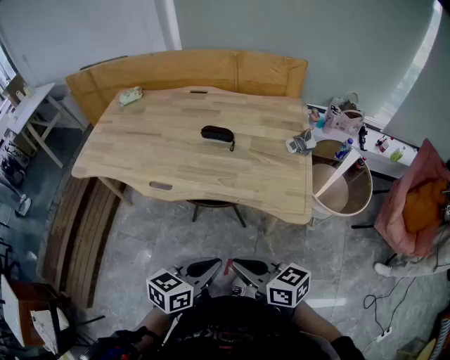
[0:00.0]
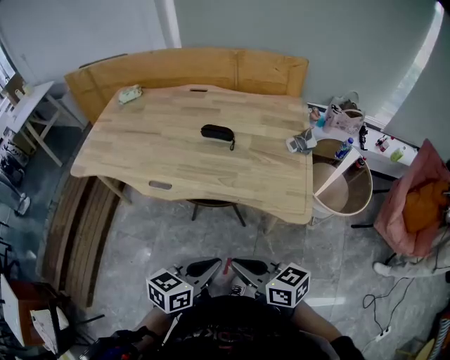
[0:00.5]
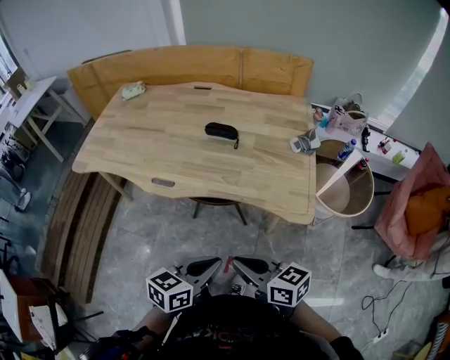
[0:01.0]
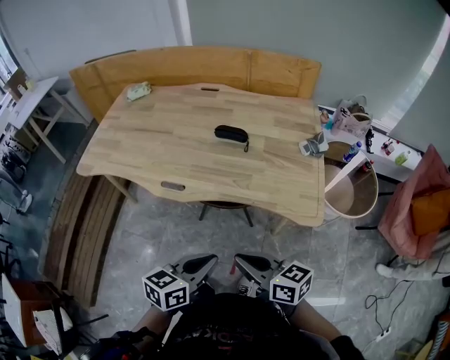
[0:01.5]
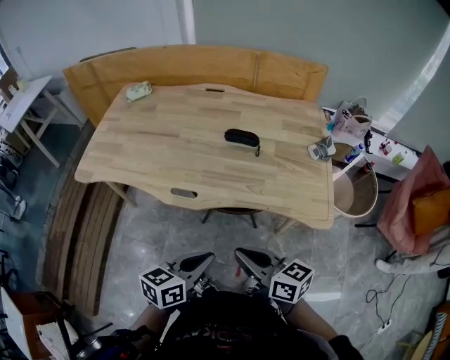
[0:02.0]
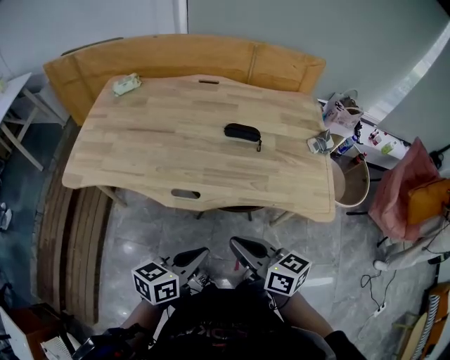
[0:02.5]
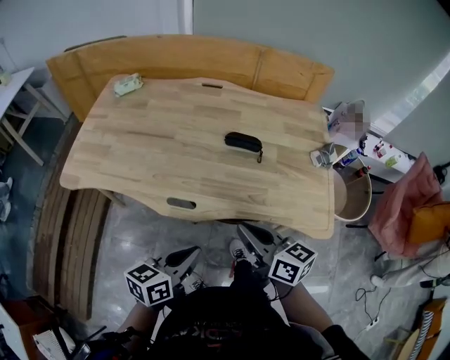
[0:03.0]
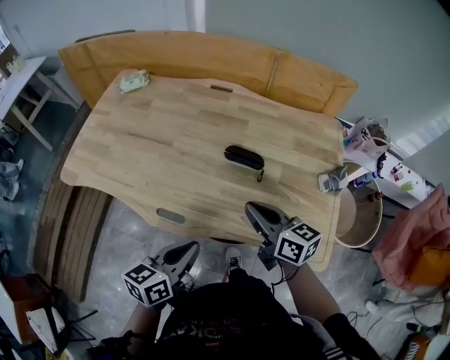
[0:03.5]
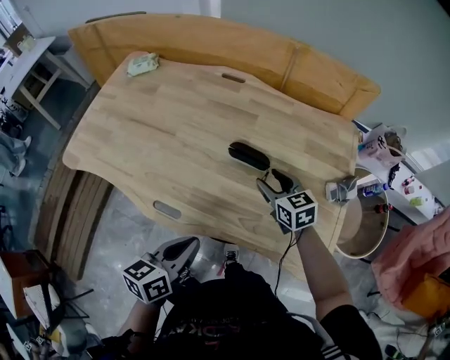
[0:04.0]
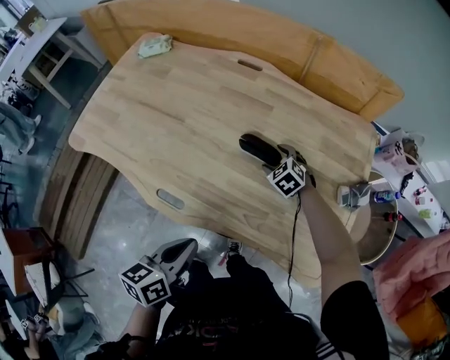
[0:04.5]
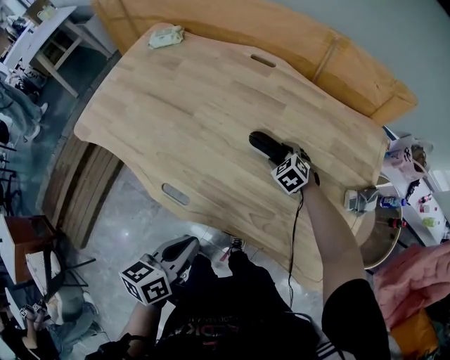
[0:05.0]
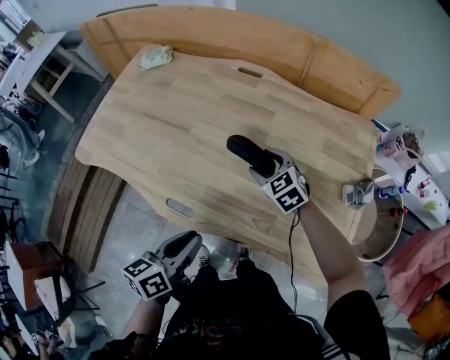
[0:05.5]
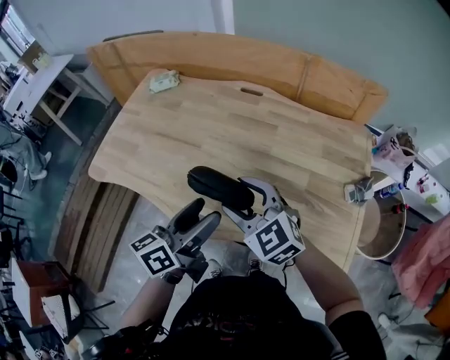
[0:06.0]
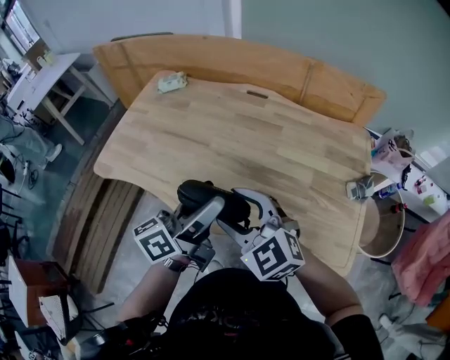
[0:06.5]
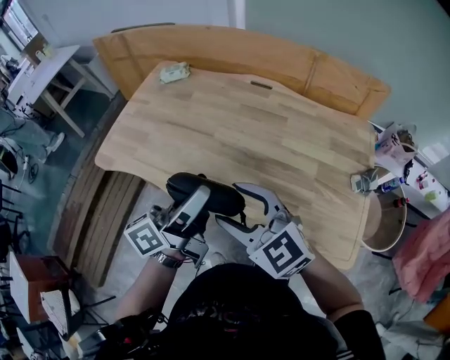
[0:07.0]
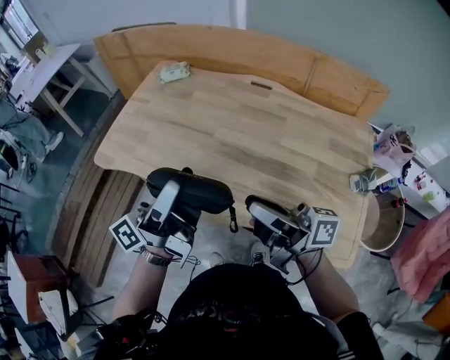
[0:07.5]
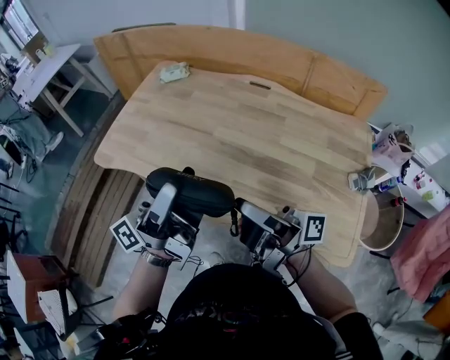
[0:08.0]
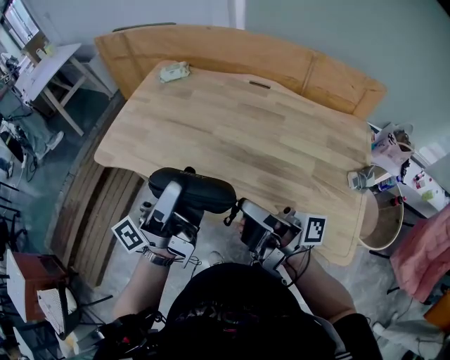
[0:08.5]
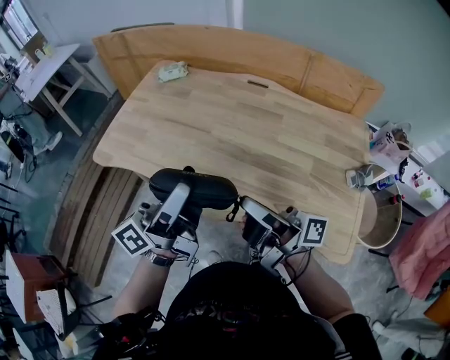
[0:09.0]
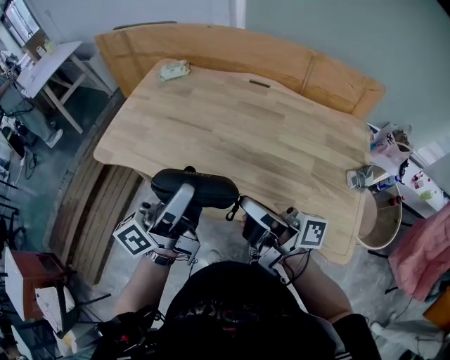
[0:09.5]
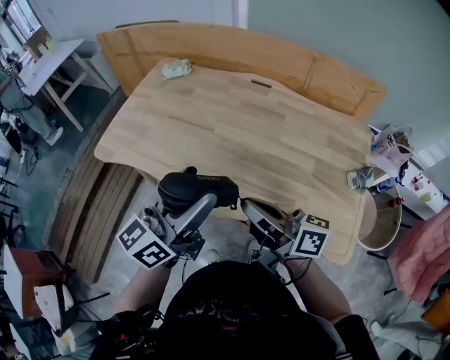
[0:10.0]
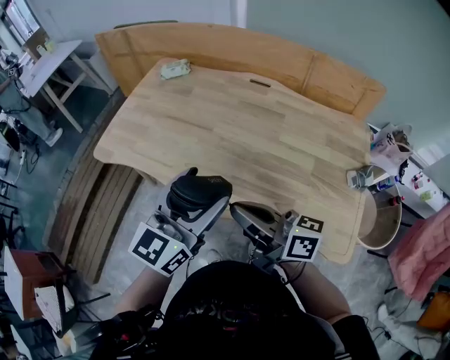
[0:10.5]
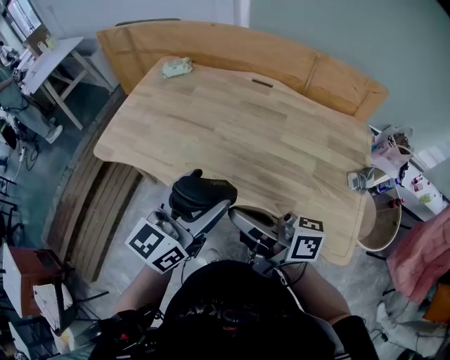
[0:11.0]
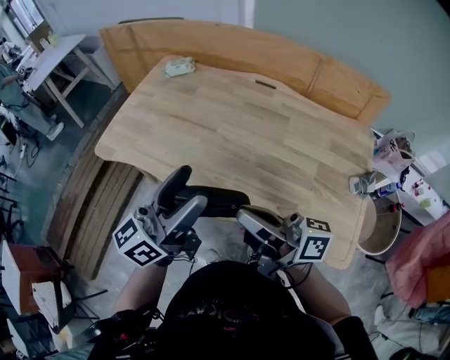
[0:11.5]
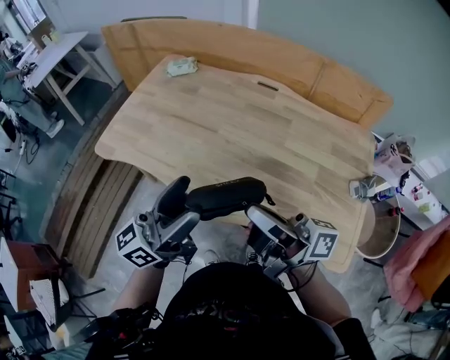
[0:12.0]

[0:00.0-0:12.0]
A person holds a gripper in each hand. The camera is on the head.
0:00.0 to 0:02.0: Both grippers move to the left and forward, roughly 15 cm.
0:02.0 to 0:04.0: The right gripper is displaced forward by about 40 cm, swivels approximately 30 degrees, and opens its fingers; the left gripper goes roughly 20 cm forward.
0:04.0 to 0:06.0: The left gripper is displaced upward and forward by about 10 cm, swivels about 20 degrees, and opens up. Meanwhile the right gripper shifts some 25 cm to the left, upward and backward, and turns by some 30 degrees.
0:06.0 to 0:08.0: The right gripper travels backward and upward by roughly 10 cm, rotates around the line of its fingers by roughly 80 degrees, clockwise from behind, and closes up. Meanwhile the left gripper is displaced upward and to the left by some 15 cm, and tips its fingers upward by about 40 degrees.
0:08.0 to 0:10.0: The left gripper rolls clockwise, seen from behind, by roughly 40 degrees, while the right gripper turns by roughly 30 degrees.
0:10.0 to 0:12.0: The right gripper moves upward, about 5 cm.

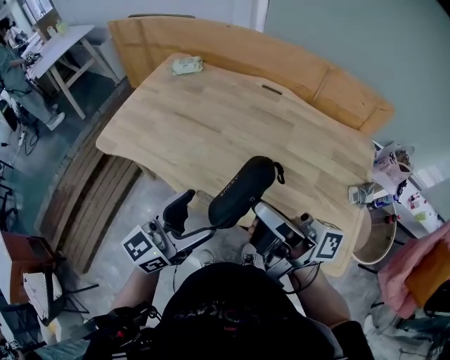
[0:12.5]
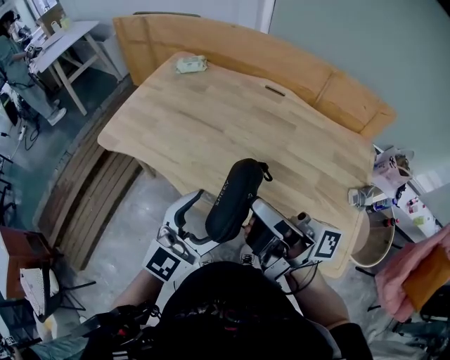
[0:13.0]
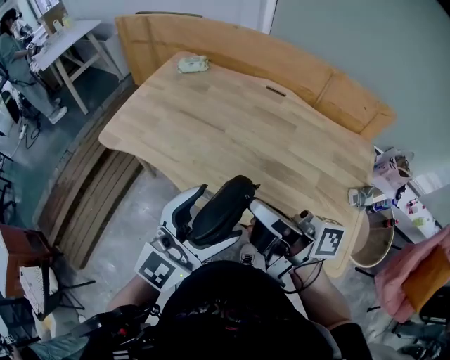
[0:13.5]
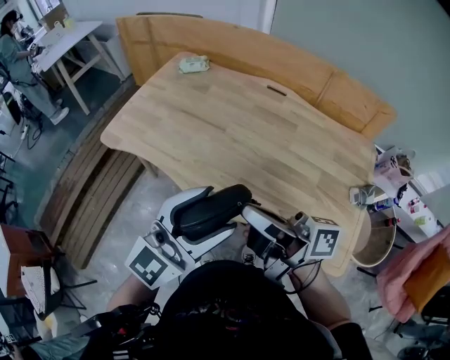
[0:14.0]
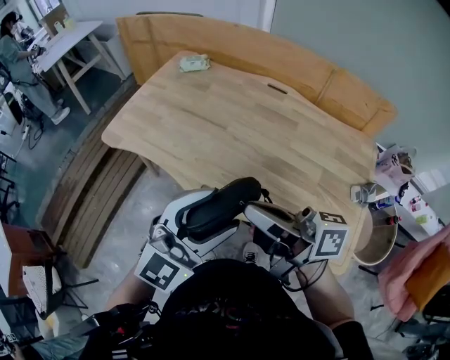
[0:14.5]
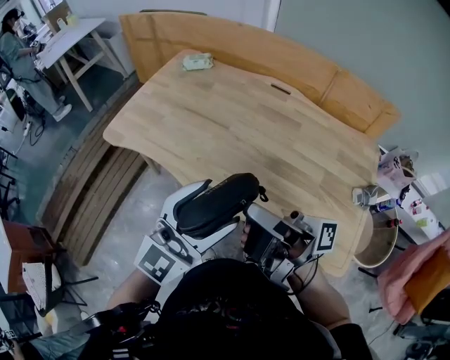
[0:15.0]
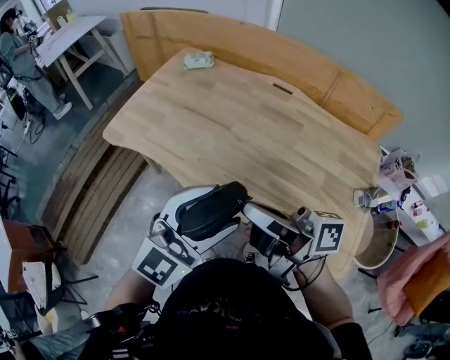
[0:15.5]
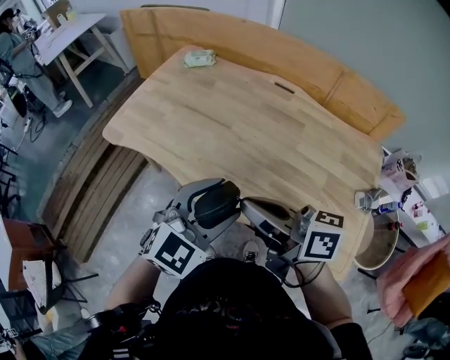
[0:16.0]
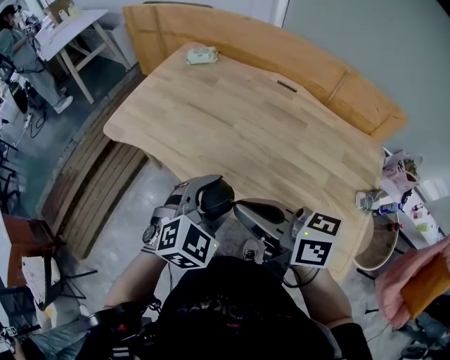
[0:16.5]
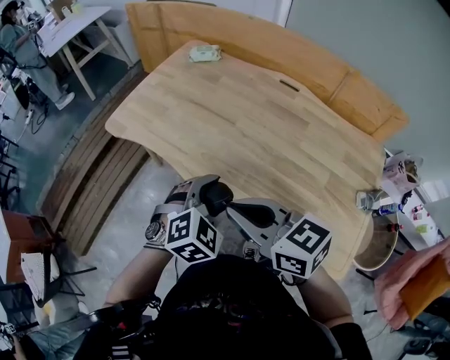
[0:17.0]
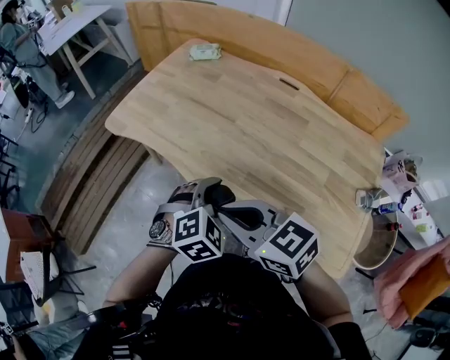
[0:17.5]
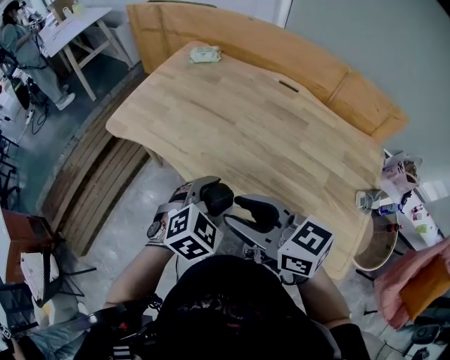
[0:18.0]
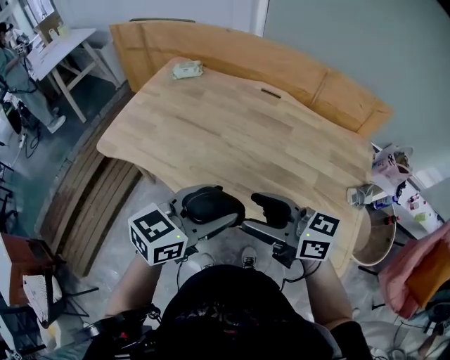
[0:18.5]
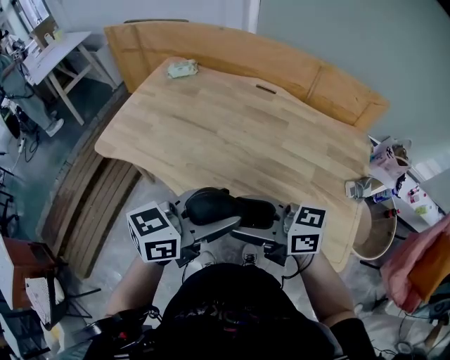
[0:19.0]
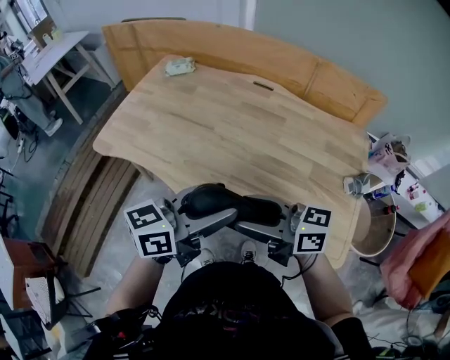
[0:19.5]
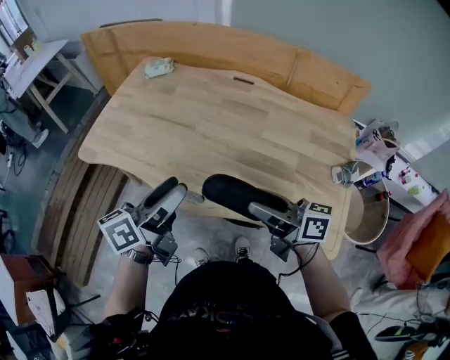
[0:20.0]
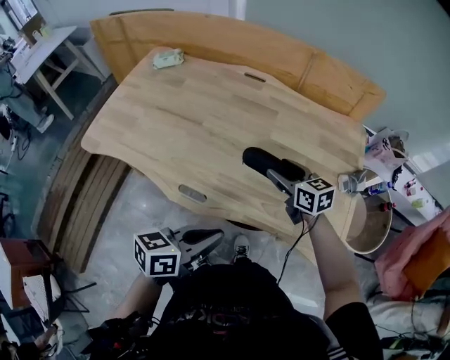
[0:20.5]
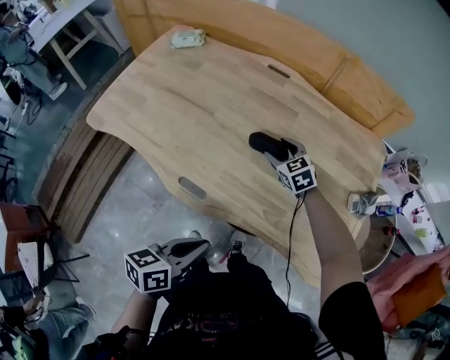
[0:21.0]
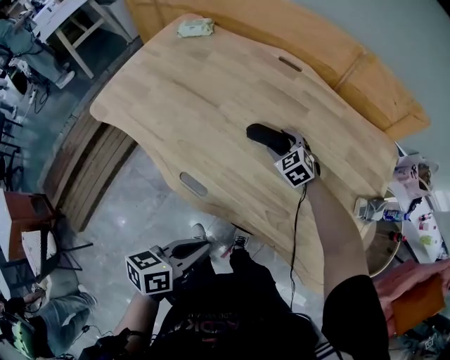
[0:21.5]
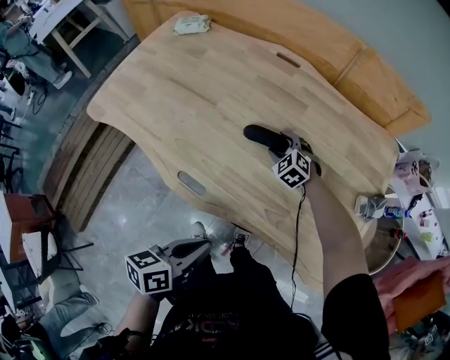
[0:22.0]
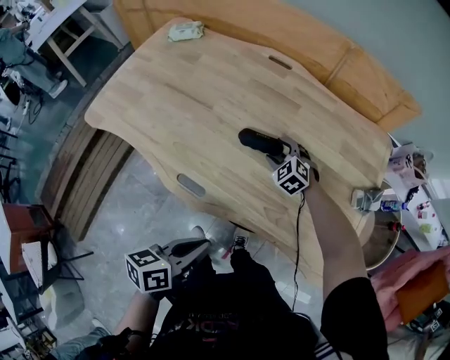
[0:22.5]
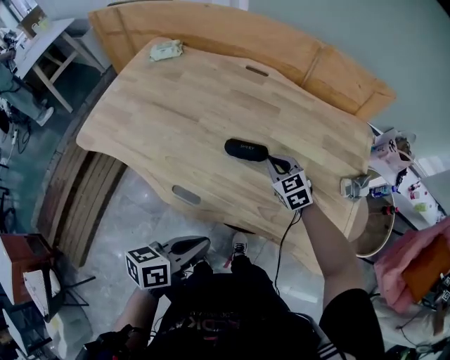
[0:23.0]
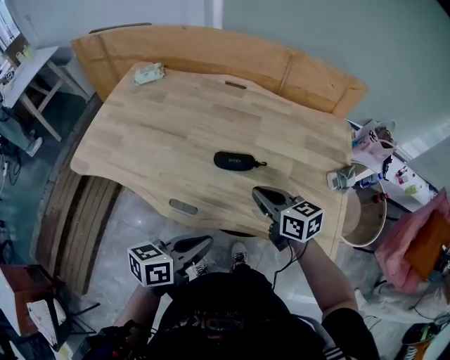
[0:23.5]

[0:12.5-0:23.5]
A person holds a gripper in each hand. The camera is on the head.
0:12.5 to 0:14.5: The left gripper shifts some 5 cm upward, and rolls clockwise, seen from behind, by some 40 degrees.
0:14.5 to 0:16.0: The left gripper shifts approximately 5 cm forward.
0:16.0 to 0:18.0: The left gripper moves downward, some 10 cm, and rotates roughly 30 degrees. Meanwhile the right gripper turns by roughly 30 degrees, and opens its fingers.
0:18.0 to 0:20.0: The left gripper heads upward, covering some 10 cm, and rolls counterclockwise, seen from behind, by roughly 70 degrees. Meanwhile the right gripper moves about 15 cm, and swivels roughly 30 degrees.
0:20.0 to 0:21.5: The left gripper heads downward, backward and to the right, covering some 20 cm, changes its angle by approximately 30 degrees, and closes up; the right gripper shifts some 35 cm forward and downward, and tilts its fingers approximately 50 degrees downward.
0:21.5 to 0:23.5: The right gripper is displaced backward and upward by roughly 25 cm, rotates around the line of its fingers by some 50 degrees, clockwise from behind, and closes; the left gripper changes its angle by some 20 degrees.

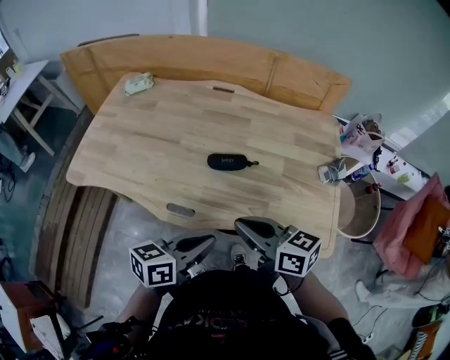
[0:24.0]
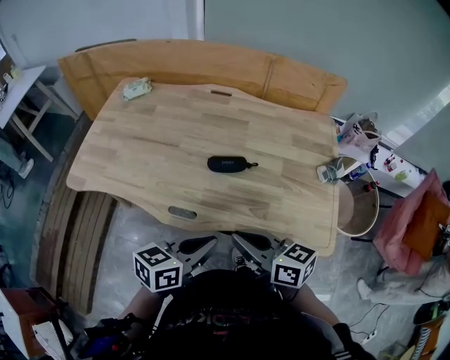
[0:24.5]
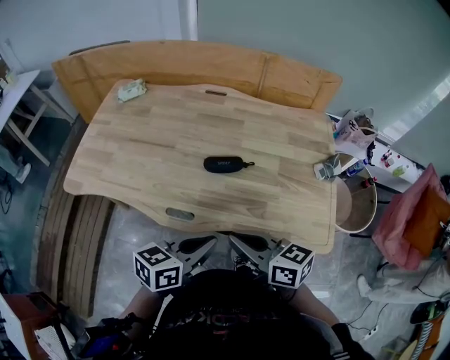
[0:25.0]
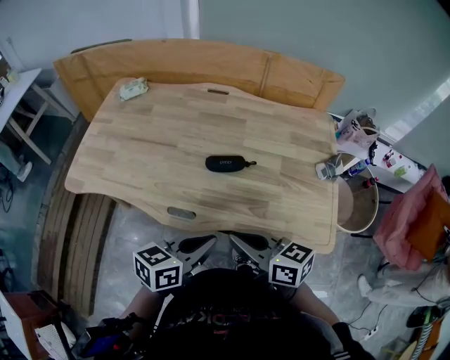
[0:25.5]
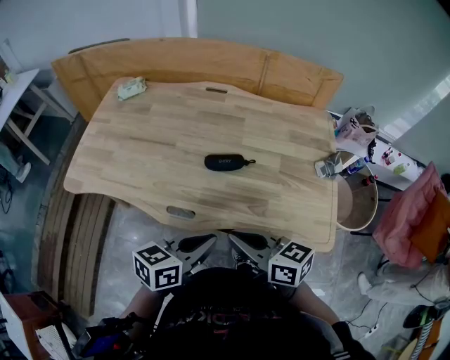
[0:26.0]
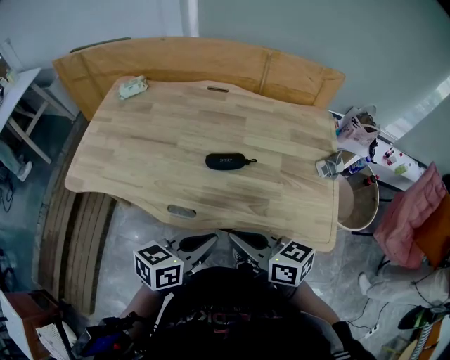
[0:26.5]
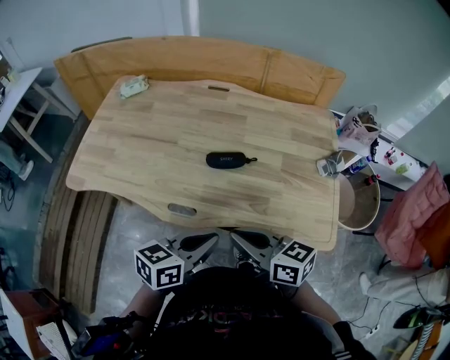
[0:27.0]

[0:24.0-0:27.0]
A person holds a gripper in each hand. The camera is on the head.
0:24.0 to 0:25.5: The grippers make only small movements.
0:25.5 to 0:27.0: Neither gripper changes place.
